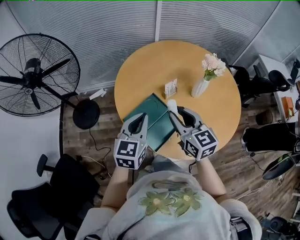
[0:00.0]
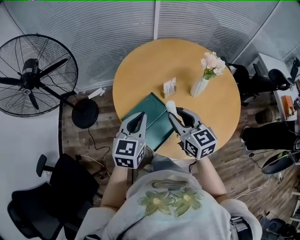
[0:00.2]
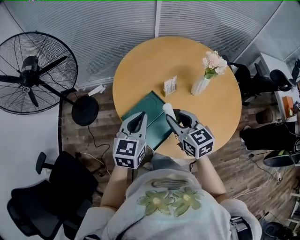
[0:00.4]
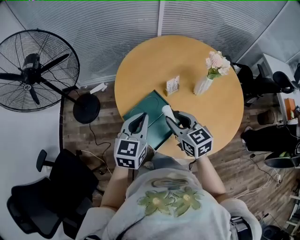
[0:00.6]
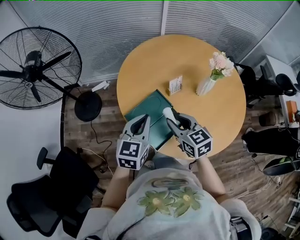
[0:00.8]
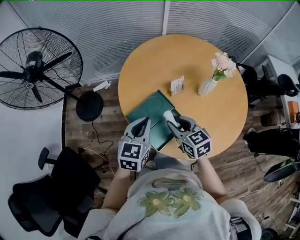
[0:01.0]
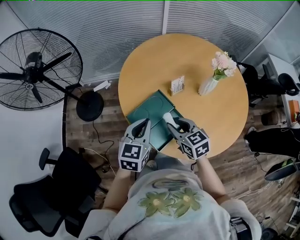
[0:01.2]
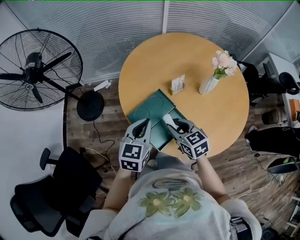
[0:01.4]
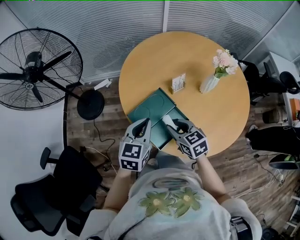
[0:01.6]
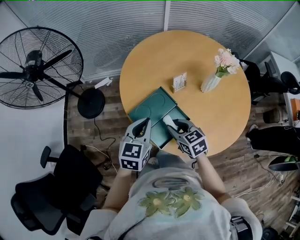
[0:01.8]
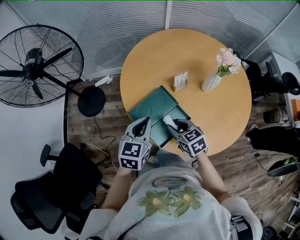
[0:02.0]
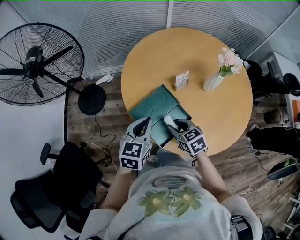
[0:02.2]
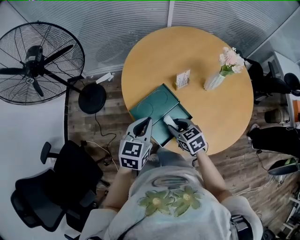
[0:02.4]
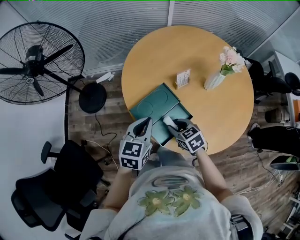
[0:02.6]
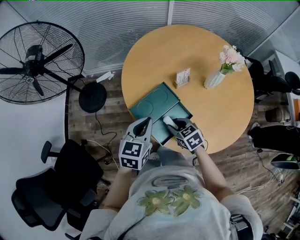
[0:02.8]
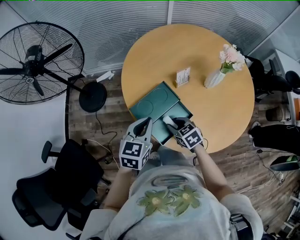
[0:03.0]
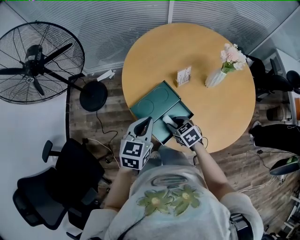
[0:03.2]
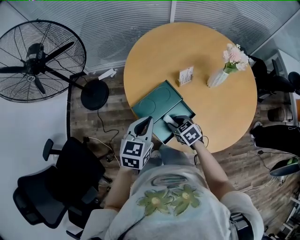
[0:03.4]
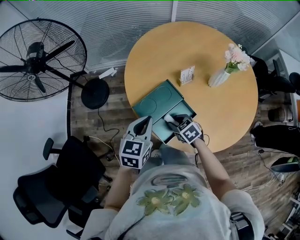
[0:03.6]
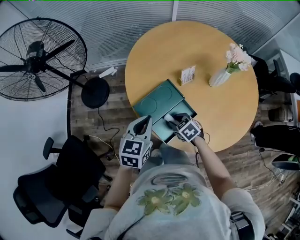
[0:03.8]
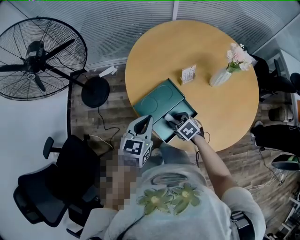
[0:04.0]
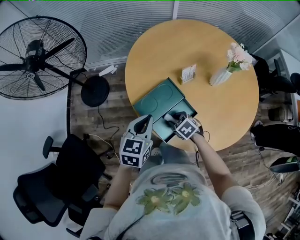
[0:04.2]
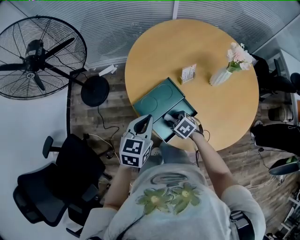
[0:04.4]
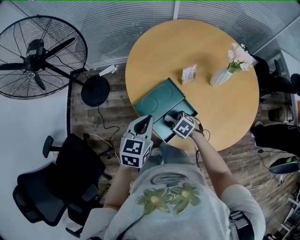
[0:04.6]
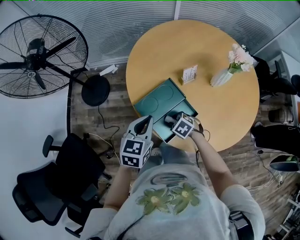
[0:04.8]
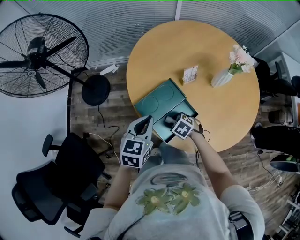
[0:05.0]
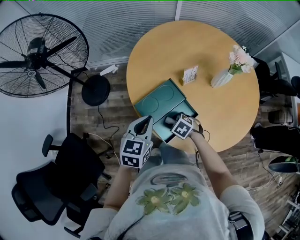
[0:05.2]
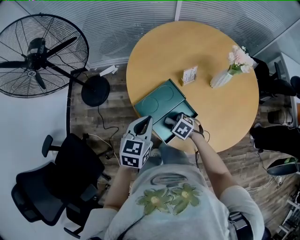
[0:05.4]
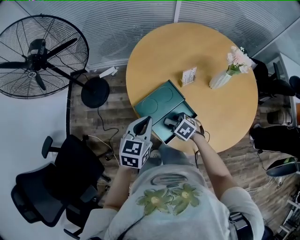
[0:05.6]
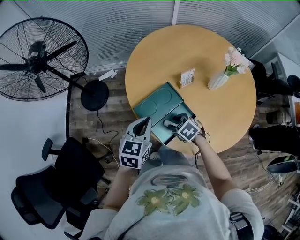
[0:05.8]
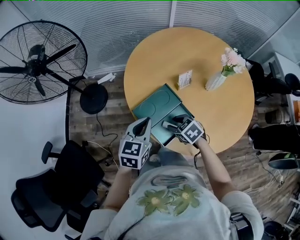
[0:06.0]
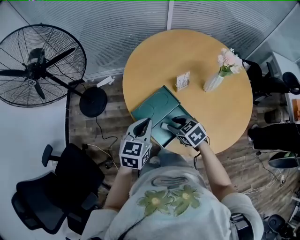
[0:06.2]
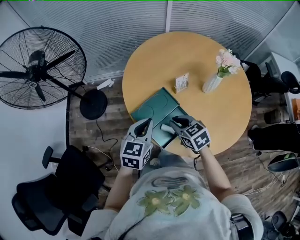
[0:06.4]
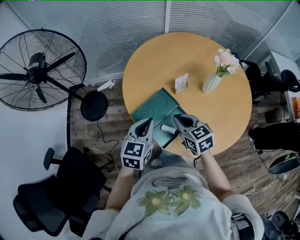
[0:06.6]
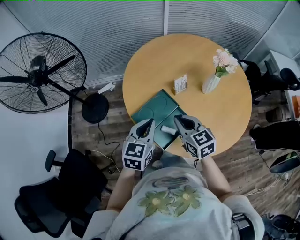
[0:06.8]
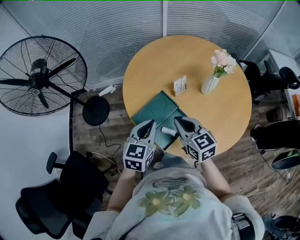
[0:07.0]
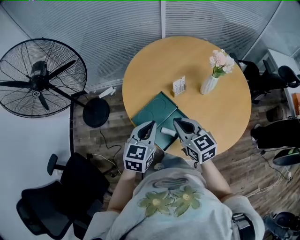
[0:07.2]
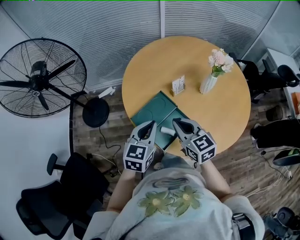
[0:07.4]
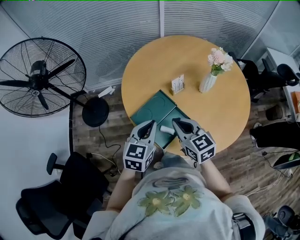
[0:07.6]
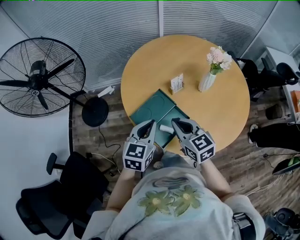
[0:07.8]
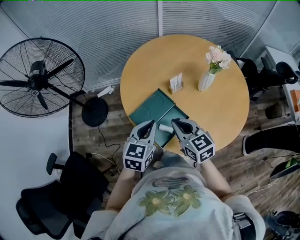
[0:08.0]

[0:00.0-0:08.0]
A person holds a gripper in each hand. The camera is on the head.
0:00.0 to 0:01.6: The left gripper travels downward by about 5 cm; the right gripper heads downward, covering roughly 15 cm, and rotates roughly 30 degrees.
0:01.6 to 0:03.2: The right gripper goes approximately 10 cm downward.
0:03.2 to 0:04.8: The right gripper travels downward by roughly 5 cm, and swivels some 30 degrees.
0:04.8 to 0:06.4: The right gripper moves upward, some 15 cm, and changes its angle by roughly 40 degrees.
0:06.4 to 0:08.0: The right gripper travels upward by roughly 10 cm, and swivels roughly 20 degrees.

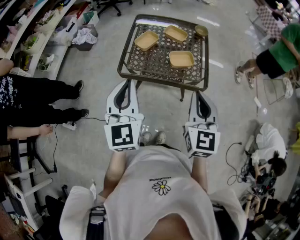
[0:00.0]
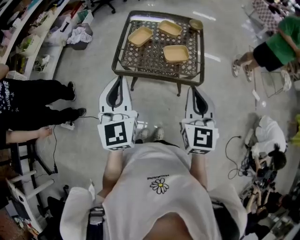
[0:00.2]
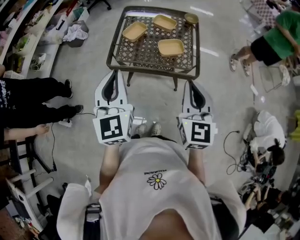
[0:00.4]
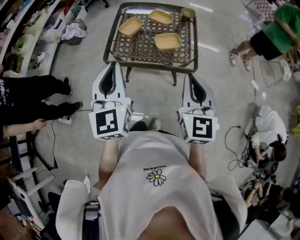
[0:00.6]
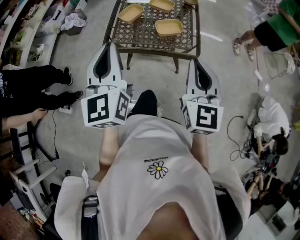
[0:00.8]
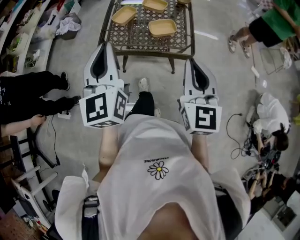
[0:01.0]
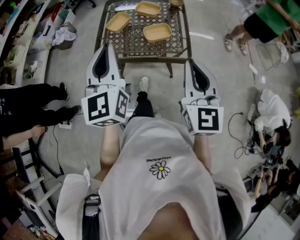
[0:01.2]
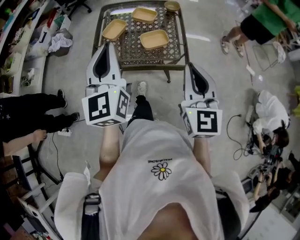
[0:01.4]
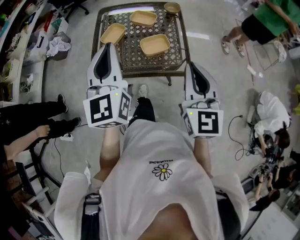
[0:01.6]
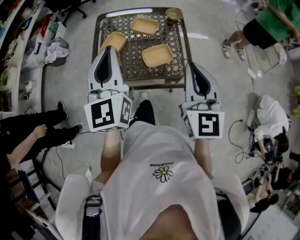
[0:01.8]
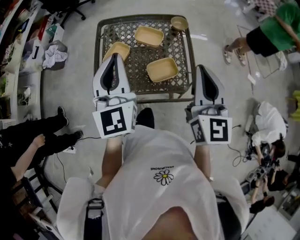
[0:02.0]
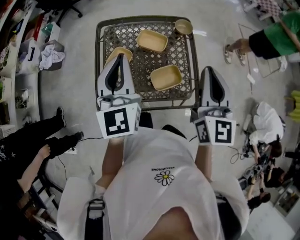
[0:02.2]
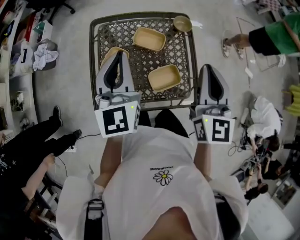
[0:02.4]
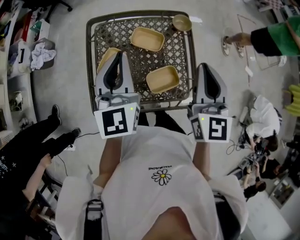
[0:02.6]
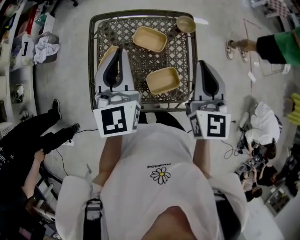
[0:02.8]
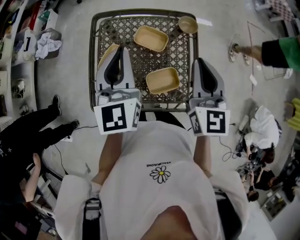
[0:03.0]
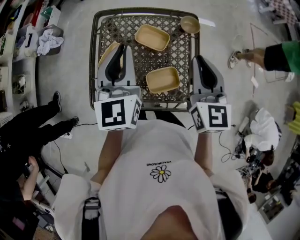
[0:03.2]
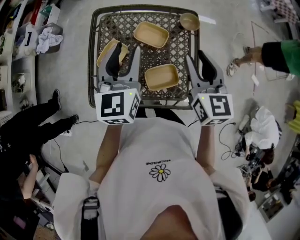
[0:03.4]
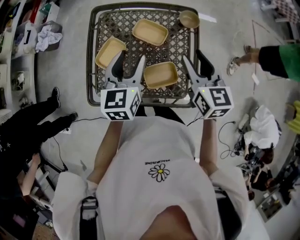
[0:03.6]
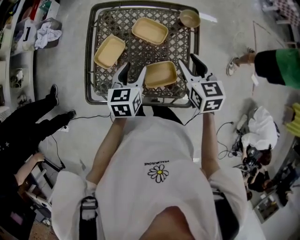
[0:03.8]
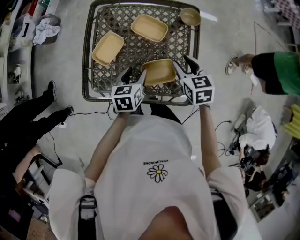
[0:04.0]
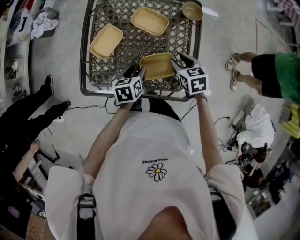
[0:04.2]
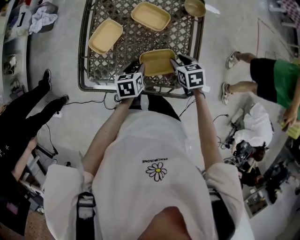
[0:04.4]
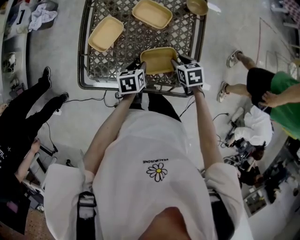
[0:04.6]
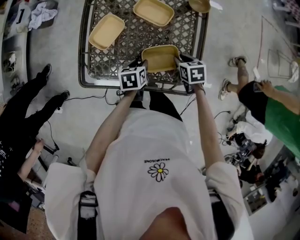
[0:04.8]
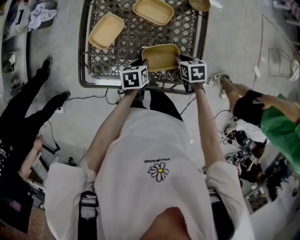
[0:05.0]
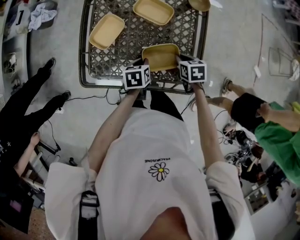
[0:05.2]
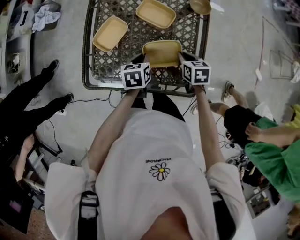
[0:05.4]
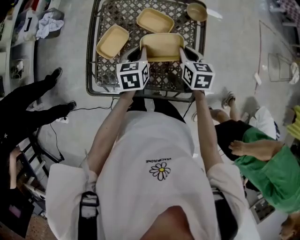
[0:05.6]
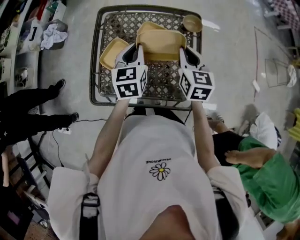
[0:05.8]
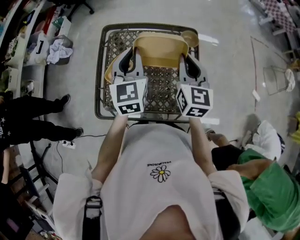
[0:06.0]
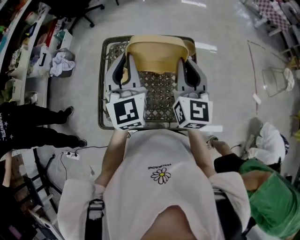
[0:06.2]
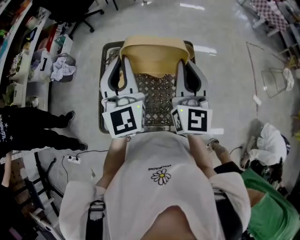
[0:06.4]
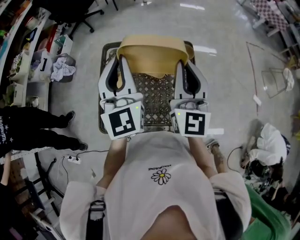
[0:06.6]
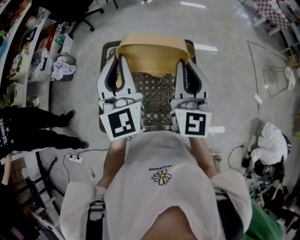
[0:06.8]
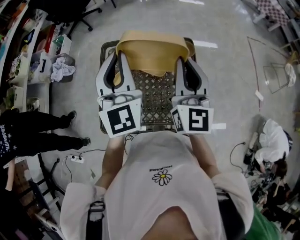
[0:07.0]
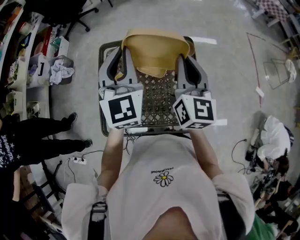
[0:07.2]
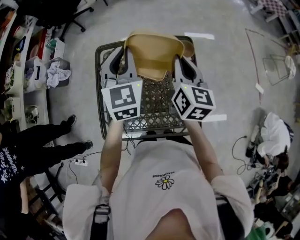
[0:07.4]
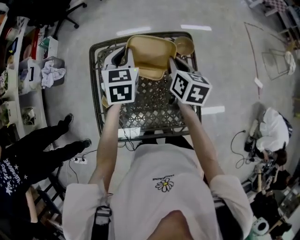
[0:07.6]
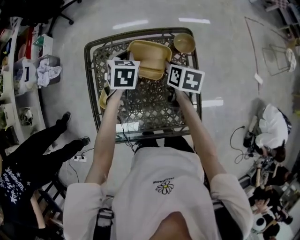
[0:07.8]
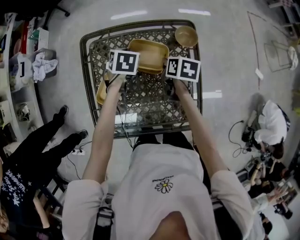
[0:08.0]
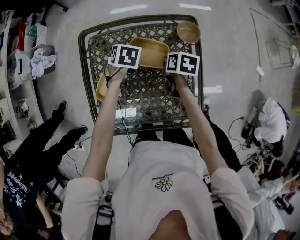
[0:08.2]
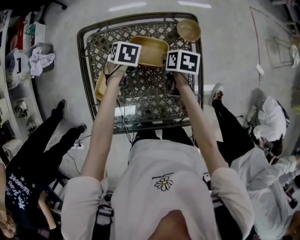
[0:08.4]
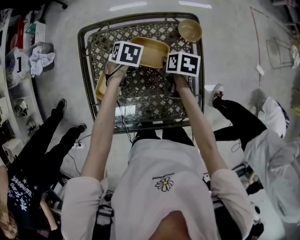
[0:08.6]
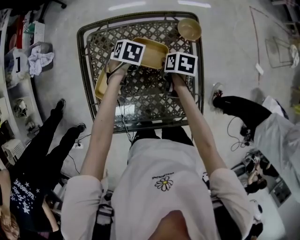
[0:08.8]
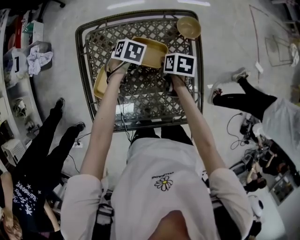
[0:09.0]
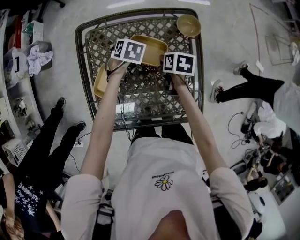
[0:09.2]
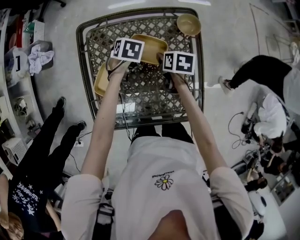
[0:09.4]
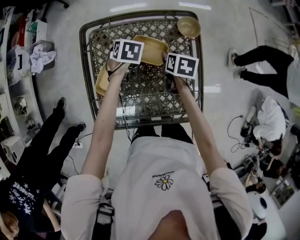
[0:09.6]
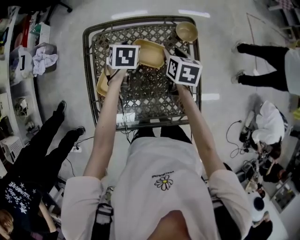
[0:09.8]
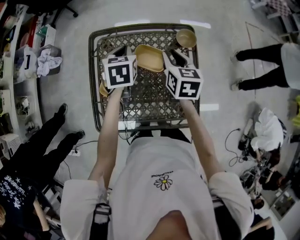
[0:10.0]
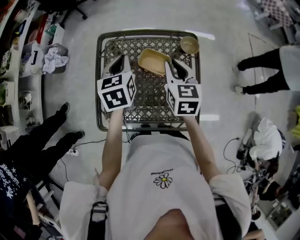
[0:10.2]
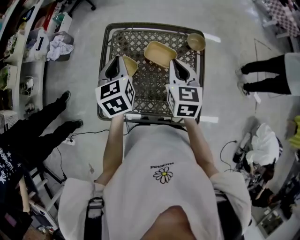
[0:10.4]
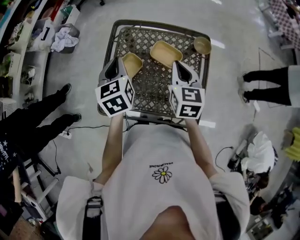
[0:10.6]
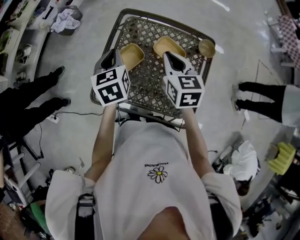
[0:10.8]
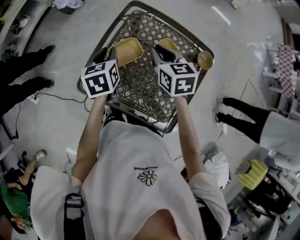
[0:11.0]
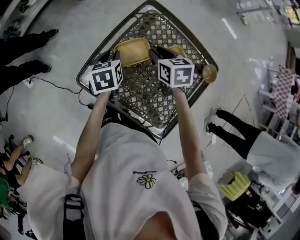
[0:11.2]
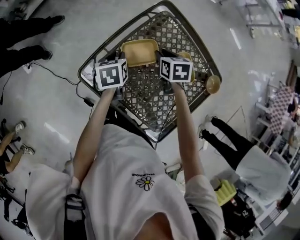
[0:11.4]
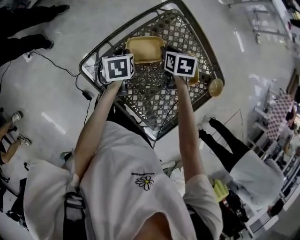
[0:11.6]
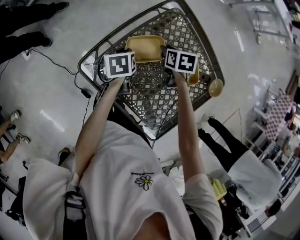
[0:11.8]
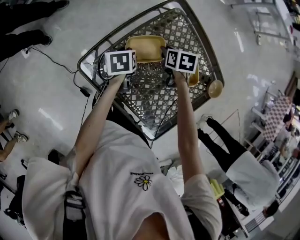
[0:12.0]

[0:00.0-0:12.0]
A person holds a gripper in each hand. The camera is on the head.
0:00.0 to 0:01.6: The left gripper moves forward and to the right, some 15 cm. Meanwhile the right gripper moves to the right and forward, some 10 cm.
0:01.6 to 0:03.0: Both grippers move forward, about 30 cm.
0:03.0 to 0:04.4: The grippers both shift downward by about 35 cm. The left gripper tilts its fingers about 50 degrees downward, and opens up. The right gripper points its fingers about 50 degrees further downward, and opens.
0:04.4 to 0:06.0: The left gripper shifts some 35 cm upward and forward, angles its fingers upward, by about 40 degrees, and closes up, while the right gripper shifts roughly 30 cm upward, angles its fingers upward, by about 50 degrees, and closes up.
0:06.0 to 0:07.6: The right gripper travels forward and downward by roughly 10 cm, and swivels approximately 30 degrees. The left gripper travels forward by some 15 cm, reaches roughly 15 cm upward, then returns, and changes its angle by about 20 degrees.
0:07.6 to 0:09.0: The two grippers go approximately 25 cm downward. The right gripper rotates about 40 degrees. Meanwhile the left gripper tilts its fingers approximately 40 degrees downward.
0:09.0 to 0:10.4: Both grippers move upward, approximately 25 cm. The right gripper angles its fingers upward, by about 40 degrees, and opens and closes again, while the left gripper points its fingers roughly 50 degrees further upward, and opens and closes again.
0:10.4 to 0:12.0: The two grippers go some 25 cm downward. The left gripper points its fingers approximately 30 degrees further downward. The right gripper angles its fingers downward, by about 40 degrees, and opens.

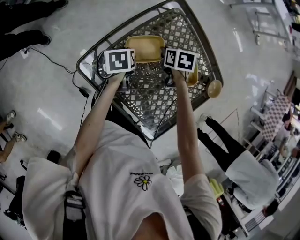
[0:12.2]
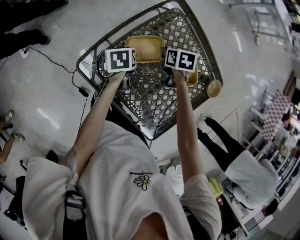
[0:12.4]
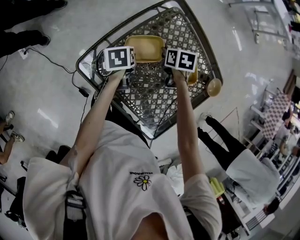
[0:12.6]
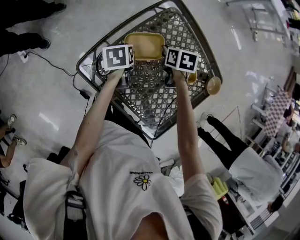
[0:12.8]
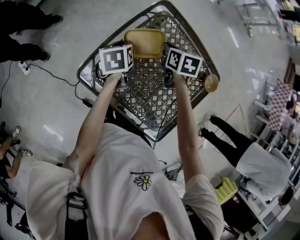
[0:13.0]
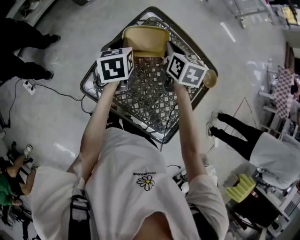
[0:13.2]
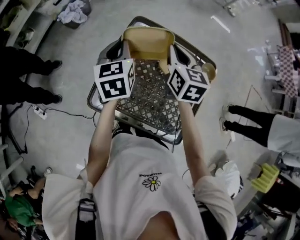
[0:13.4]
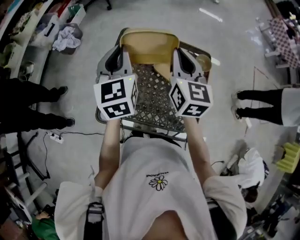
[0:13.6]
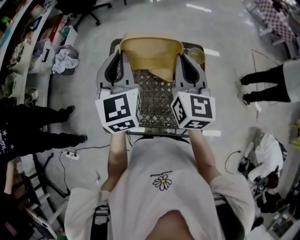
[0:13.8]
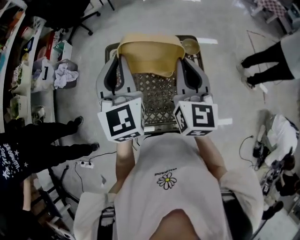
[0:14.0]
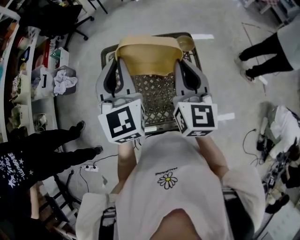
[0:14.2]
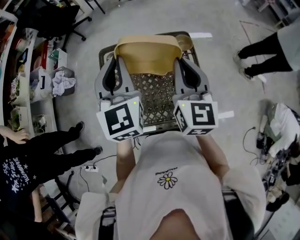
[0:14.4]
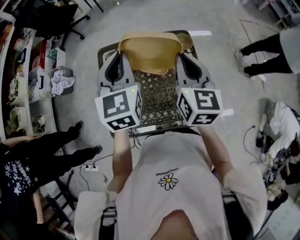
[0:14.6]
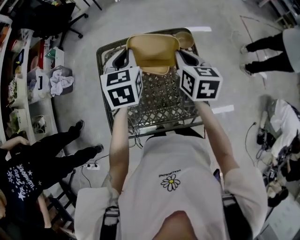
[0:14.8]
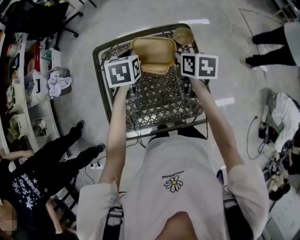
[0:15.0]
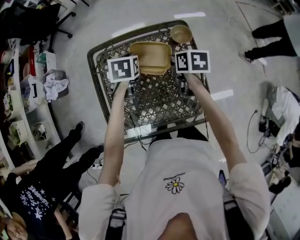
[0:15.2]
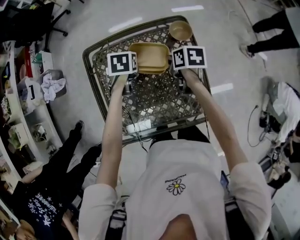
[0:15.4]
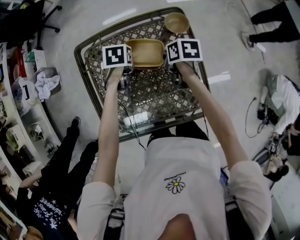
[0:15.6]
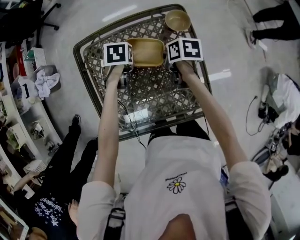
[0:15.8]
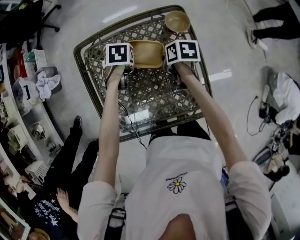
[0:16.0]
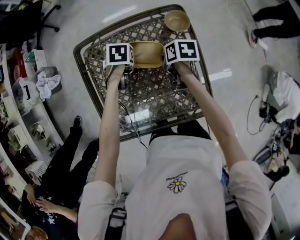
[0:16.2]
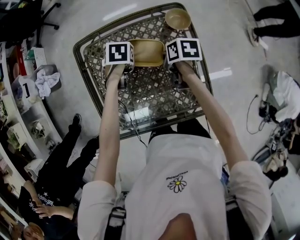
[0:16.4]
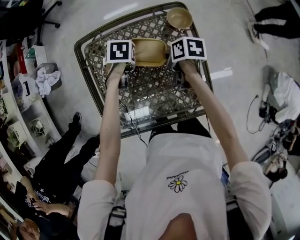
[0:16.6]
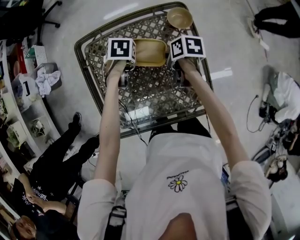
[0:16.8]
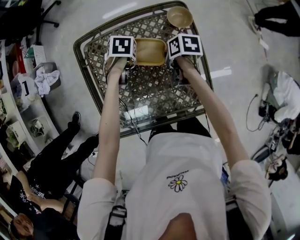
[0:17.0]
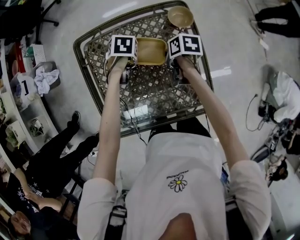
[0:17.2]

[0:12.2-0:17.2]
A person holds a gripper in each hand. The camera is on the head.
0:12.2 to 0:13.8: The two grippers go about 40 cm upward. The right gripper tips its fingers upward by about 60 degrees. The left gripper points its fingers about 50 degrees further upward.
0:13.8 to 0:15.6: Both grippers move downward, roughly 35 cm. The right gripper tilts its fingers some 50 degrees downward. Meanwhile the left gripper points its fingers approximately 60 degrees further downward.
0:15.6 to 0:17.2: There are only small adjustments of the grippers.
